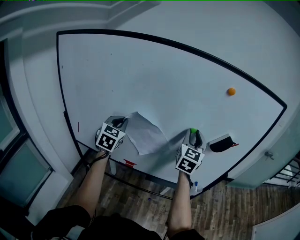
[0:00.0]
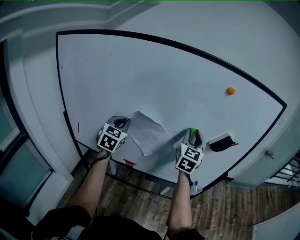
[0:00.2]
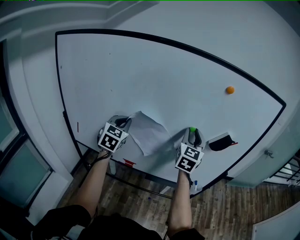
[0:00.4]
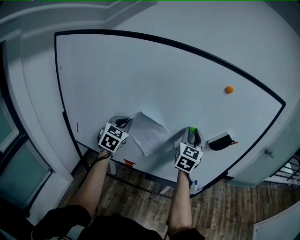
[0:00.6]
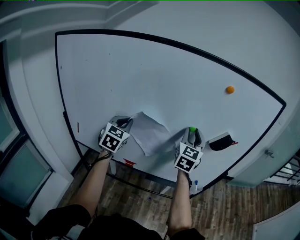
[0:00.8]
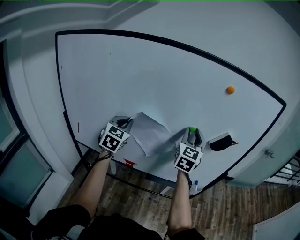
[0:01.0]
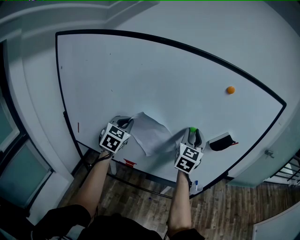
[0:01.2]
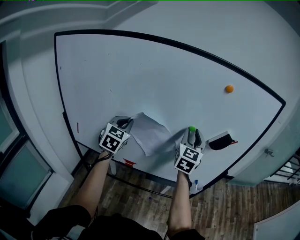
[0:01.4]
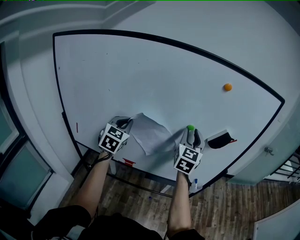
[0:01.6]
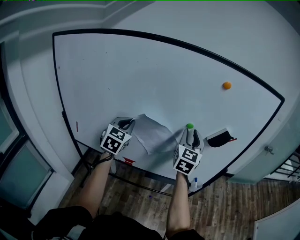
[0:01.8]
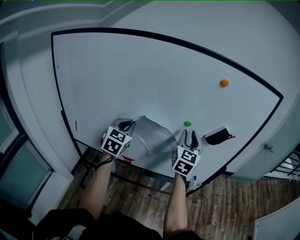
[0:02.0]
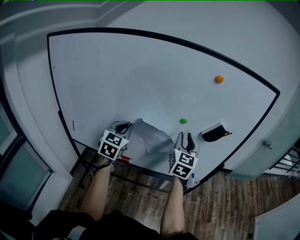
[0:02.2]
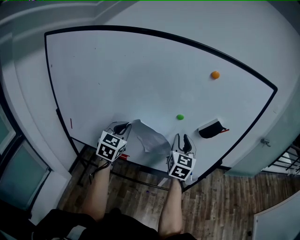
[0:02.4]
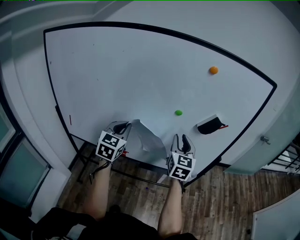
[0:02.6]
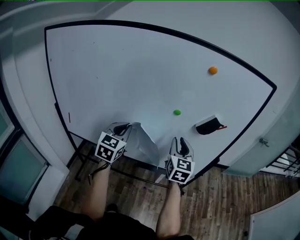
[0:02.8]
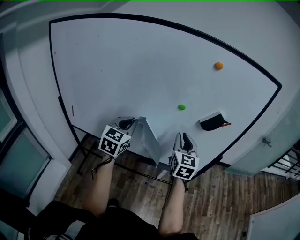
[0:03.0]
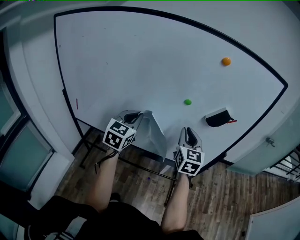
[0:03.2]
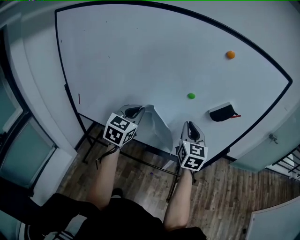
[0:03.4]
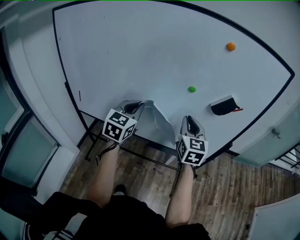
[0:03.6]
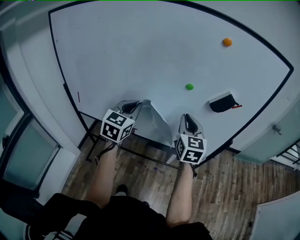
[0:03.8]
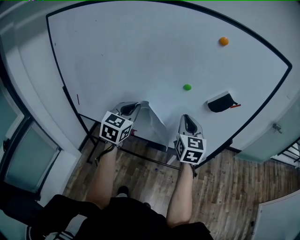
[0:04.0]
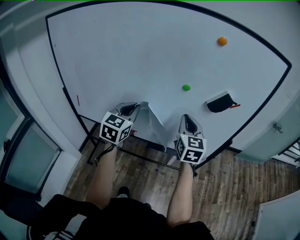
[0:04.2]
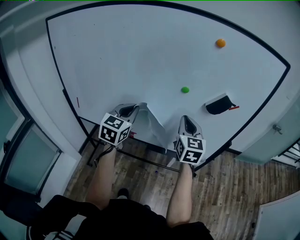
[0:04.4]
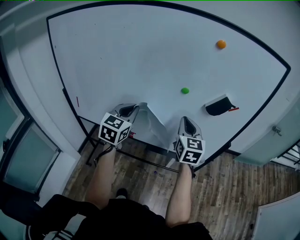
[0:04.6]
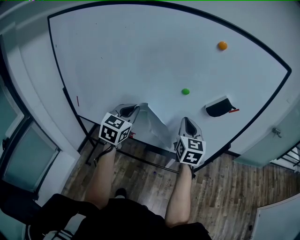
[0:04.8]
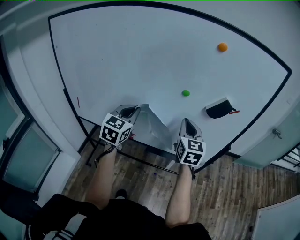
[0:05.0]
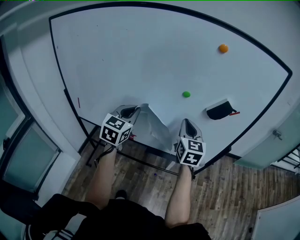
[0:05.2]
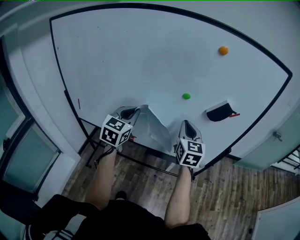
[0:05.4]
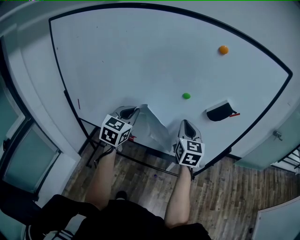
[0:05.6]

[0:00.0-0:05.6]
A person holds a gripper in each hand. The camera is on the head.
0:00.0 to 0:01.4: The grippers move only a little.
0:01.4 to 0:02.8: The left gripper travels to the right and backward by approximately 10 cm, while the right gripper heads downward and backward, covering about 10 cm.
0:02.8 to 0:05.6: The grippers move only a little.

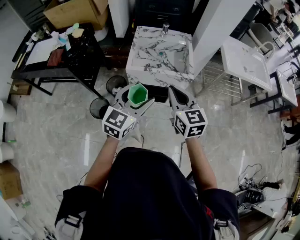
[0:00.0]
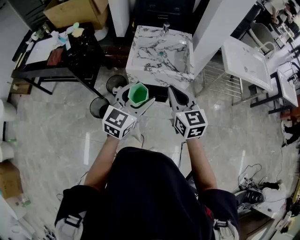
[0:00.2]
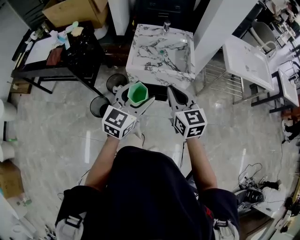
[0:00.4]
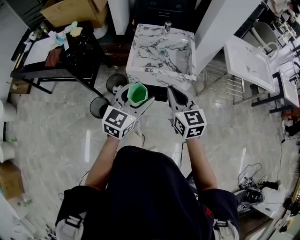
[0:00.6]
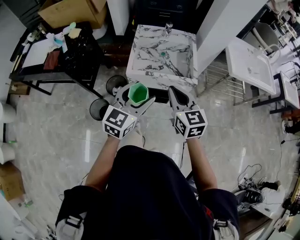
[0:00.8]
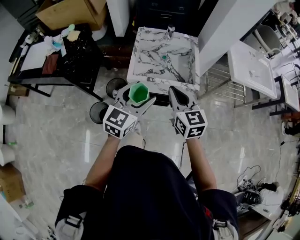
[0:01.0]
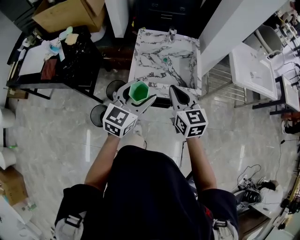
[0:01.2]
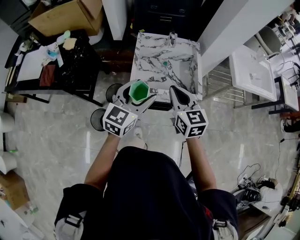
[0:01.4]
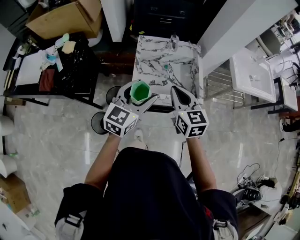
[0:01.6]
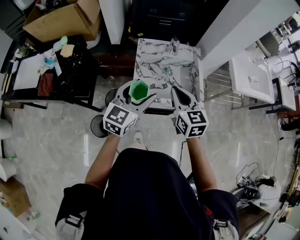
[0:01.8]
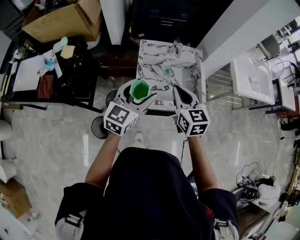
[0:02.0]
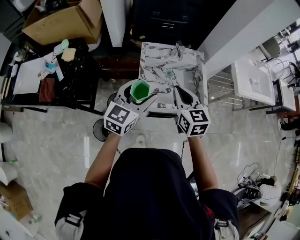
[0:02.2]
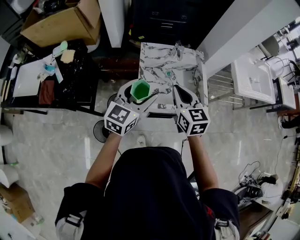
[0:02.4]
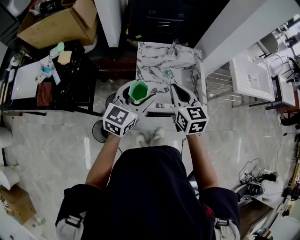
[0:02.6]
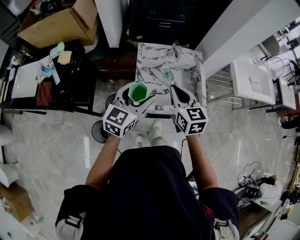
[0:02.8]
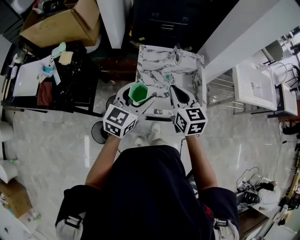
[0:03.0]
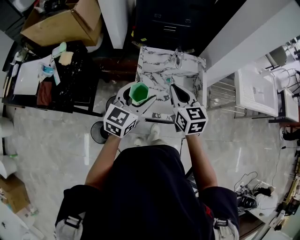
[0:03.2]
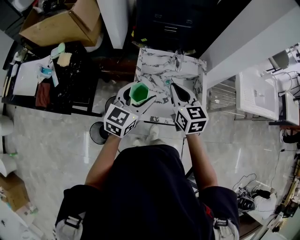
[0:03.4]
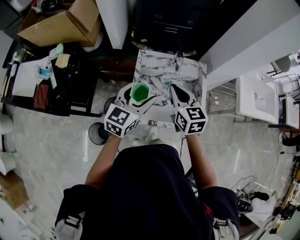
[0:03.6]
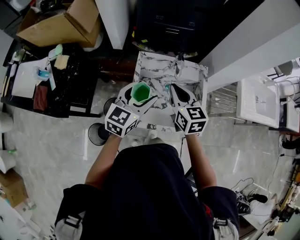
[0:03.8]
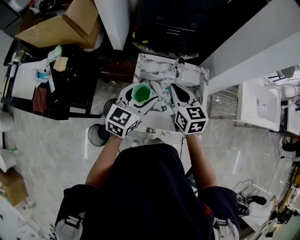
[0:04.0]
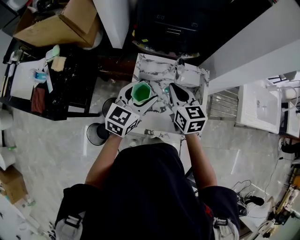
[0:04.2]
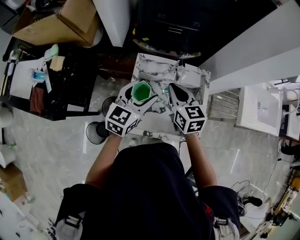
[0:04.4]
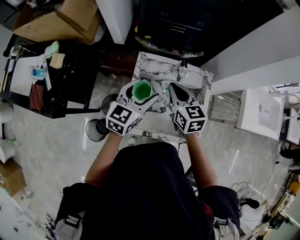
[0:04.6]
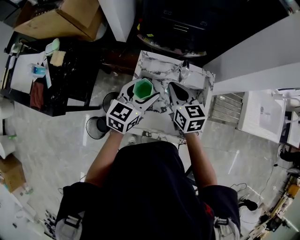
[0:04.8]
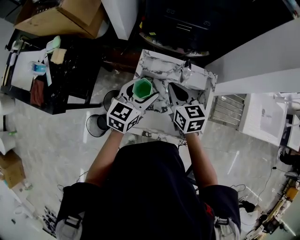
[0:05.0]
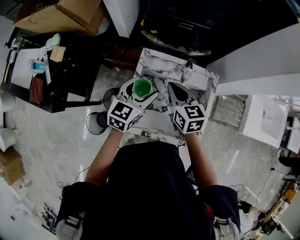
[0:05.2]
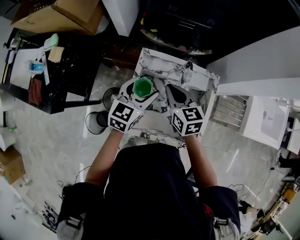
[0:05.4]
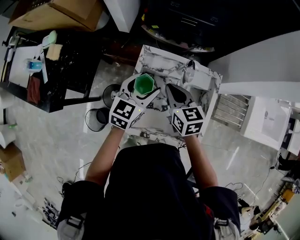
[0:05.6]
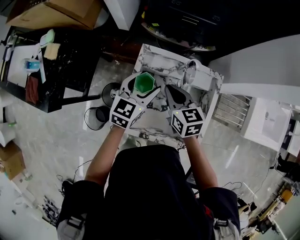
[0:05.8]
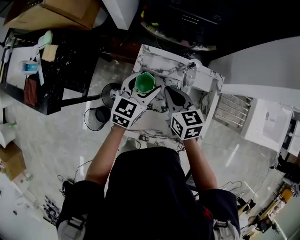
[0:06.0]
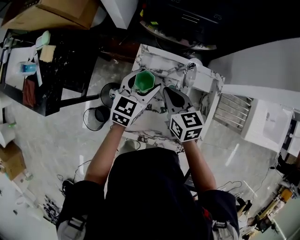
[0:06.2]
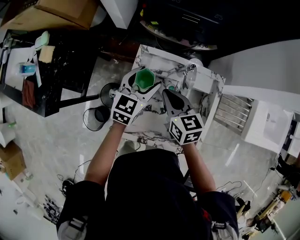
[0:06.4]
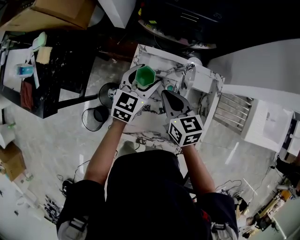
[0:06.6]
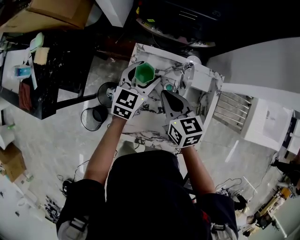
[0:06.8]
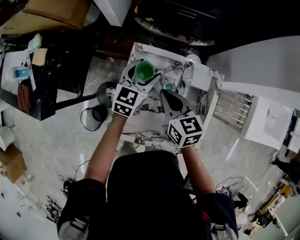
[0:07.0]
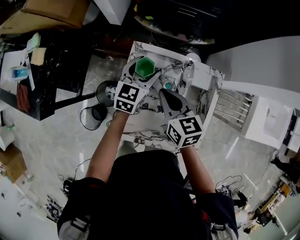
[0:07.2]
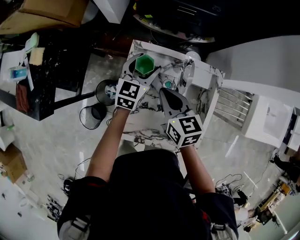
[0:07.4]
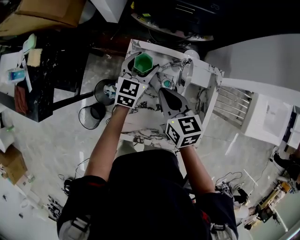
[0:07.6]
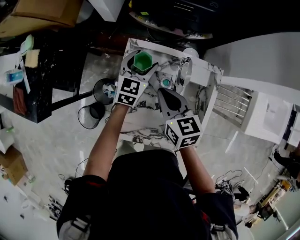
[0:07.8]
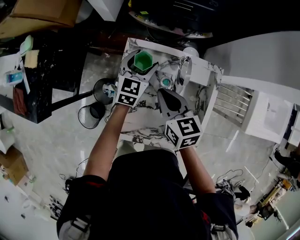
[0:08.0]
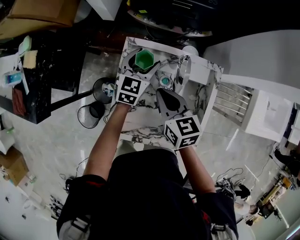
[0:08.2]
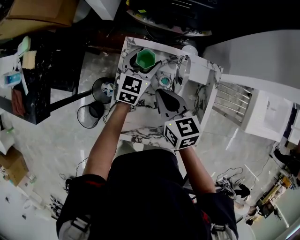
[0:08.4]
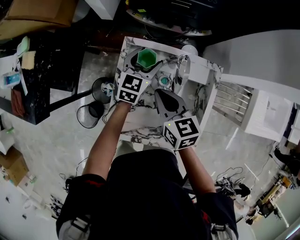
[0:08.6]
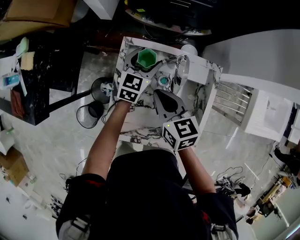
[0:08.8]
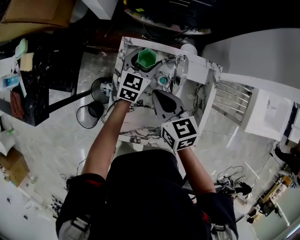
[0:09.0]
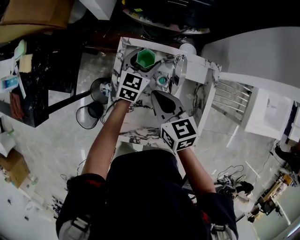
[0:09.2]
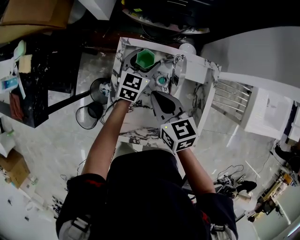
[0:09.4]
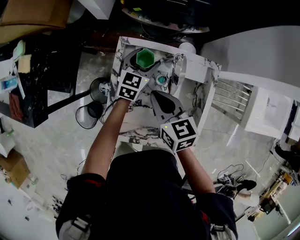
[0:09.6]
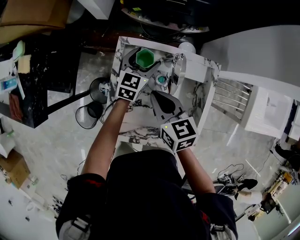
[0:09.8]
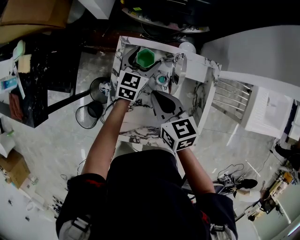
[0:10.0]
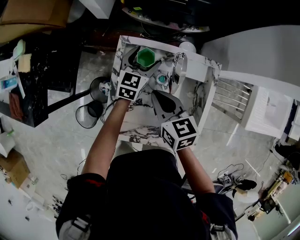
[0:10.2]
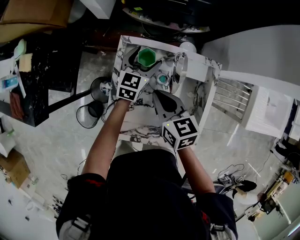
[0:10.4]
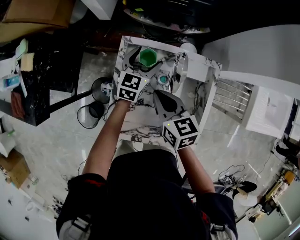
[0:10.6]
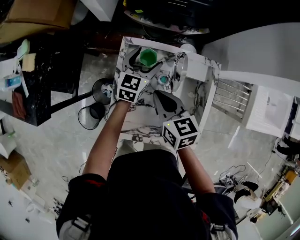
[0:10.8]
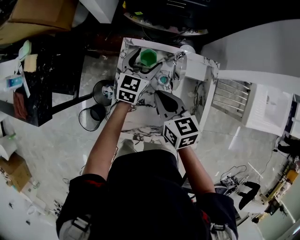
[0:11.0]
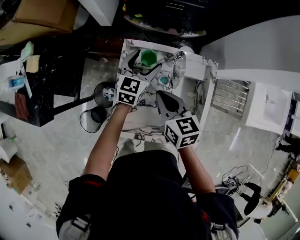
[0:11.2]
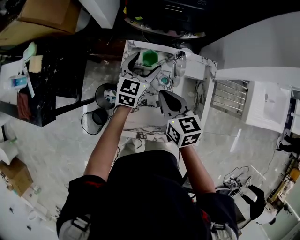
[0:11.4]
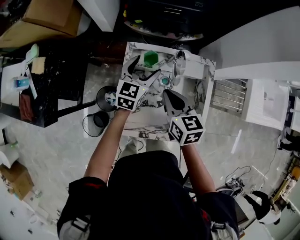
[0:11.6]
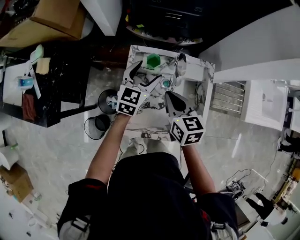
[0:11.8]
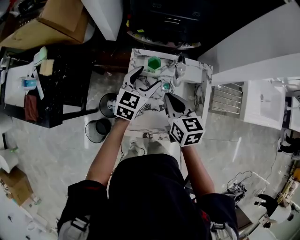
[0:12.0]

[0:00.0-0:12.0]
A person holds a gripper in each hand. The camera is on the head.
0:00.0 to 0:01.6: The grippers both shift forward by roughly 20 cm.
0:01.6 to 0:03.0: The grippers both shift forward by roughly 10 cm.
0:03.0 to 0:04.4: The two grippers go some 15 cm forward.
0:04.4 to 0:06.0: The right gripper is displaced downward by some 10 cm. Meanwhile the left gripper heads downward and forward, covering roughly 10 cm.
0:06.0 to 0:07.6: The left gripper travels forward and downward by approximately 10 cm.
0:07.6 to 0:09.0: The left gripper shifts by roughly 5 cm.
0:09.0 to 0:10.4: The grippers move only a little.
0:10.4 to 0:12.0: The right gripper heads upward, covering roughly 5 cm. The left gripper moves upward and backward, some 15 cm.

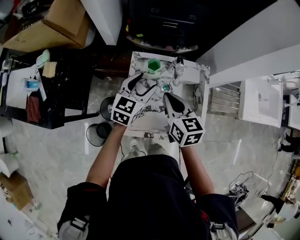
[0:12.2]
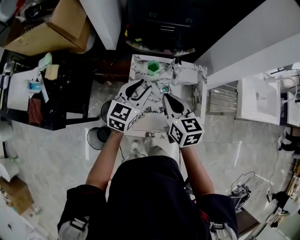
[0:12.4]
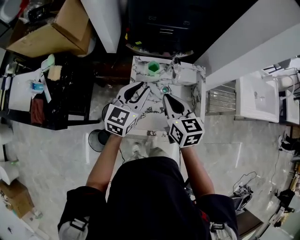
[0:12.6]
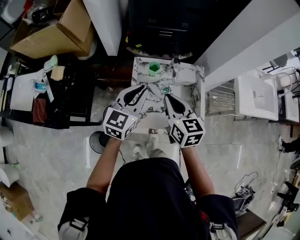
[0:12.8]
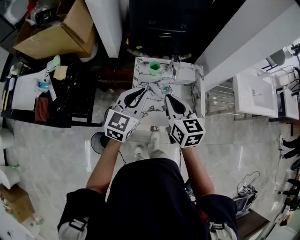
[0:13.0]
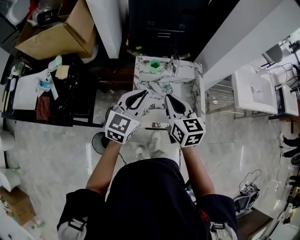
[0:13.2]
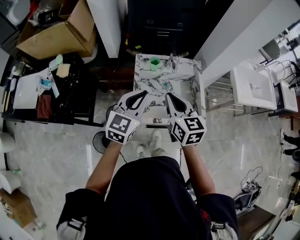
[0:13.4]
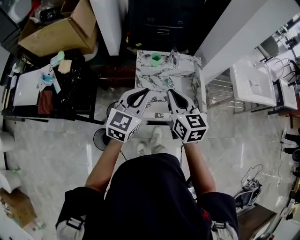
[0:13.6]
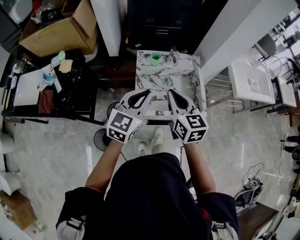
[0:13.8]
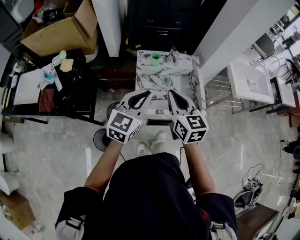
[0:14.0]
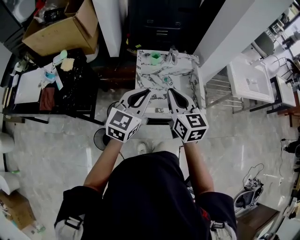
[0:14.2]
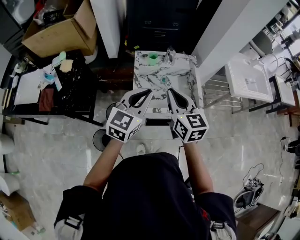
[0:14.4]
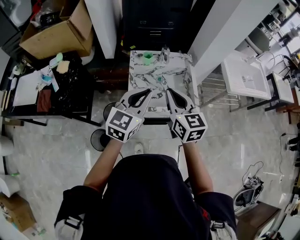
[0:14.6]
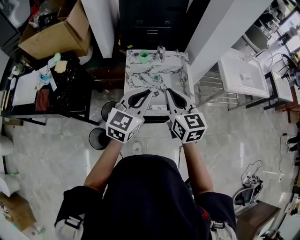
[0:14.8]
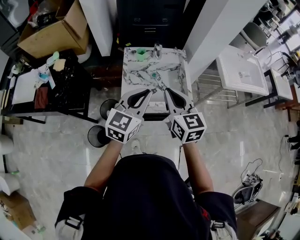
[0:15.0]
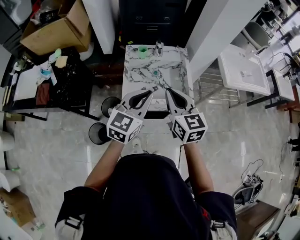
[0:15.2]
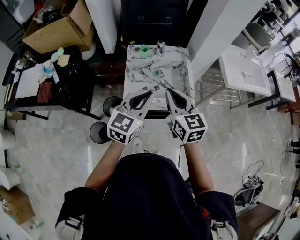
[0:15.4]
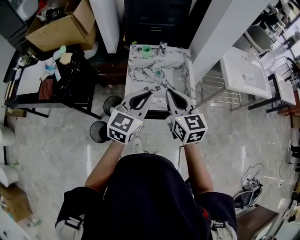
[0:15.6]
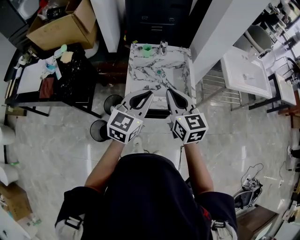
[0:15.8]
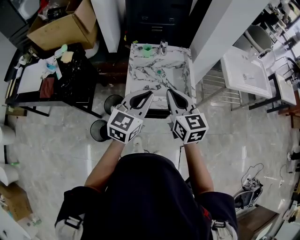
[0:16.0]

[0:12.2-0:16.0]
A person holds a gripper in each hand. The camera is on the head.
0:12.2 to 0:13.4: The grippers both shift backward and upward by approximately 15 cm. The left gripper closes.
0:13.4 to 0:14.8: The grippers both shift backward and to the right by about 10 cm.
0:14.8 to 0:16.0: Both grippers travel together backward, approximately 5 cm.

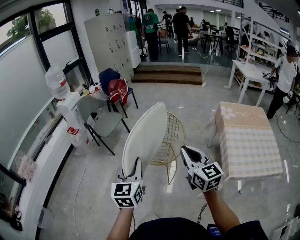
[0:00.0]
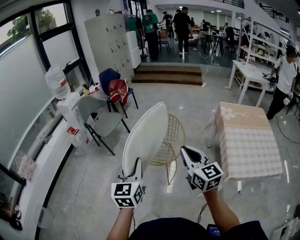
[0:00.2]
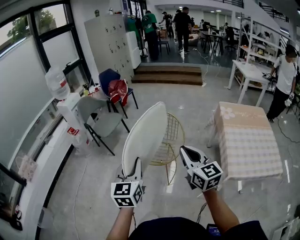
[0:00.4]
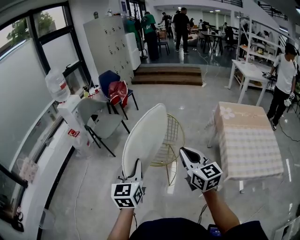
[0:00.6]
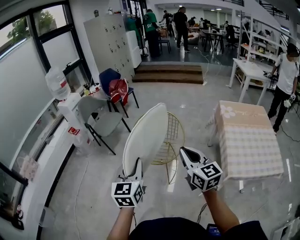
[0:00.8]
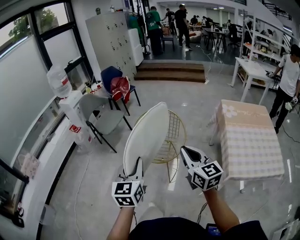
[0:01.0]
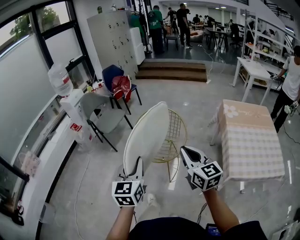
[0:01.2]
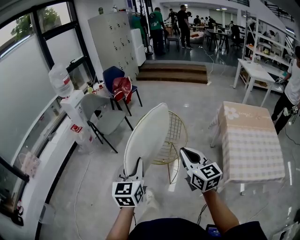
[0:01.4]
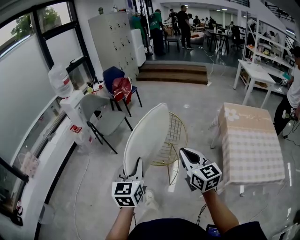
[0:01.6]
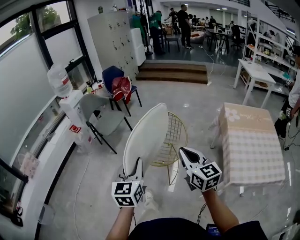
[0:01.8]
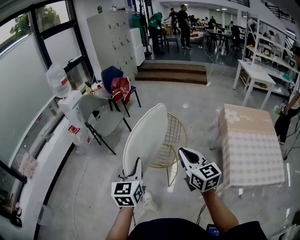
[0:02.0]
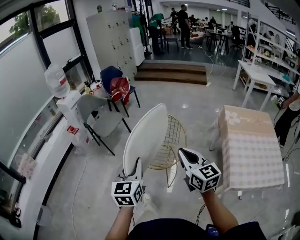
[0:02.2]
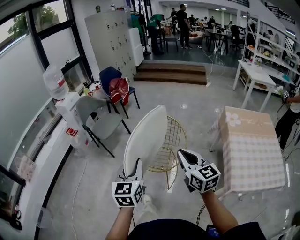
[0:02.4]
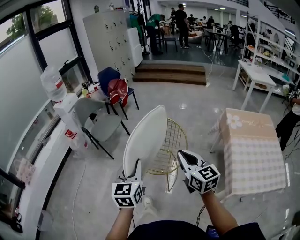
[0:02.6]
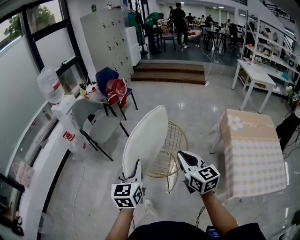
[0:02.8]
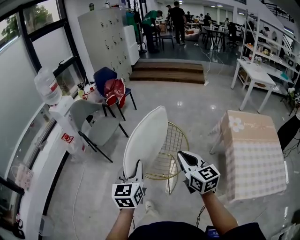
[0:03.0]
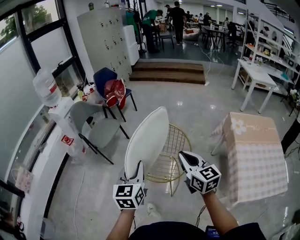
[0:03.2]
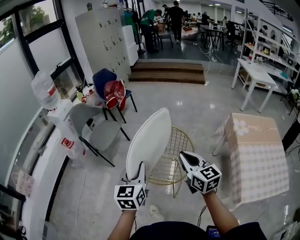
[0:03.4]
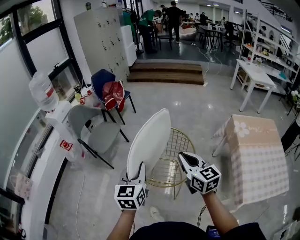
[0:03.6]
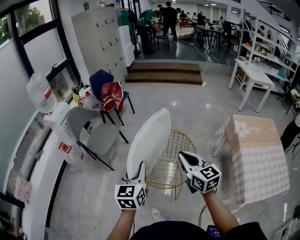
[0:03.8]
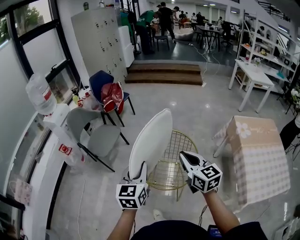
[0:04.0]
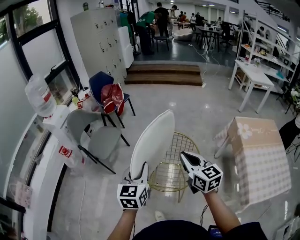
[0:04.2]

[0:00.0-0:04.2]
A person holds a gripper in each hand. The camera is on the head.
0:00.0 to 0:01.4: The grippers move only a little.
0:01.4 to 0:02.8: The grippers both shift forward by about 15 cm.
0:02.8 to 0:04.2: Both grippers travel together forward and to the left, approximately 20 cm.
